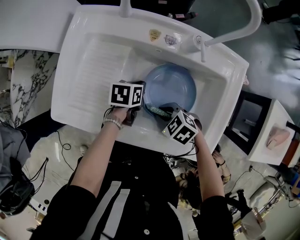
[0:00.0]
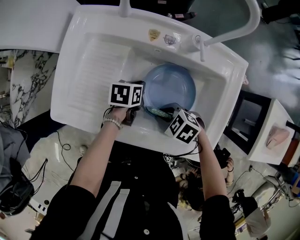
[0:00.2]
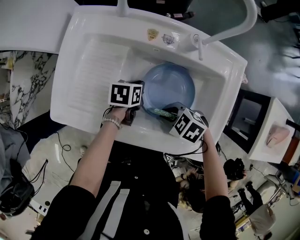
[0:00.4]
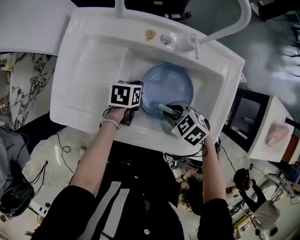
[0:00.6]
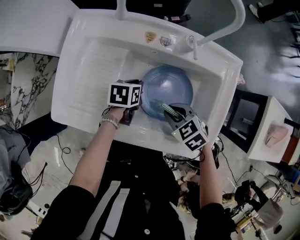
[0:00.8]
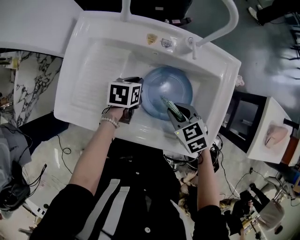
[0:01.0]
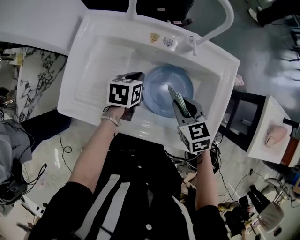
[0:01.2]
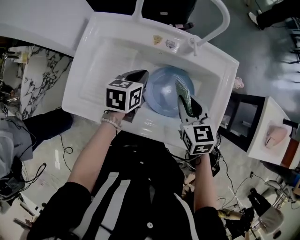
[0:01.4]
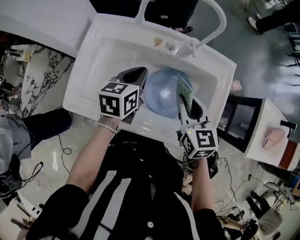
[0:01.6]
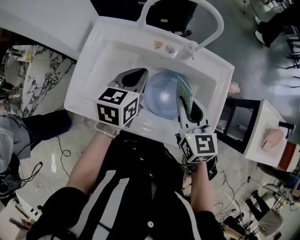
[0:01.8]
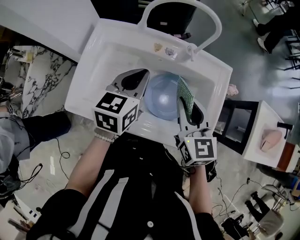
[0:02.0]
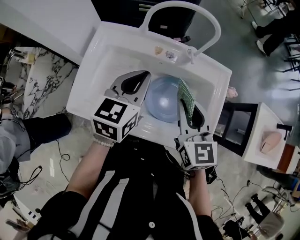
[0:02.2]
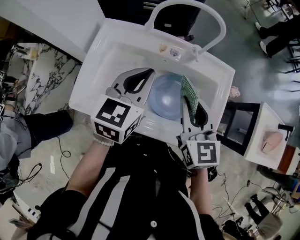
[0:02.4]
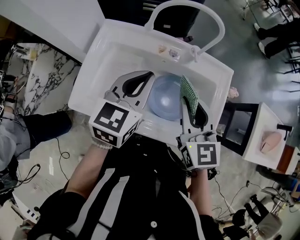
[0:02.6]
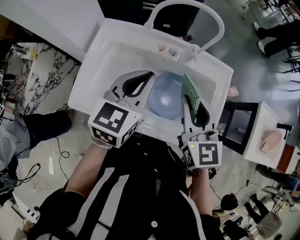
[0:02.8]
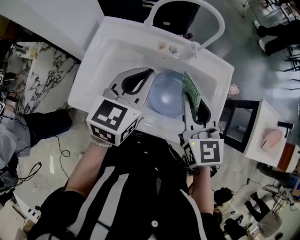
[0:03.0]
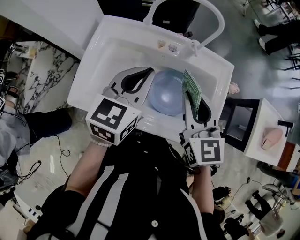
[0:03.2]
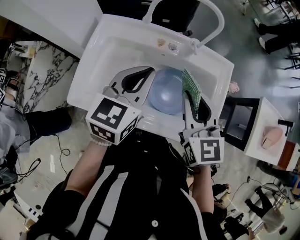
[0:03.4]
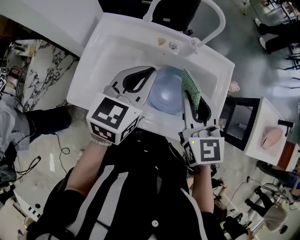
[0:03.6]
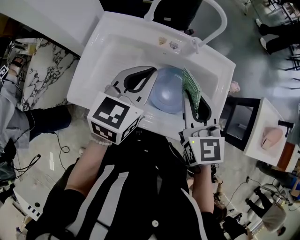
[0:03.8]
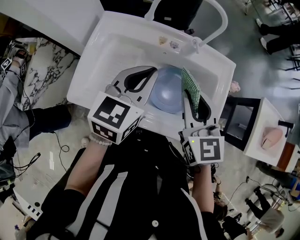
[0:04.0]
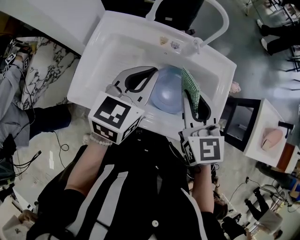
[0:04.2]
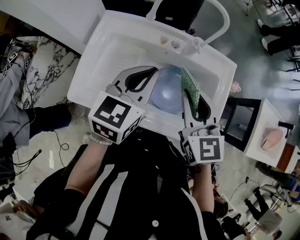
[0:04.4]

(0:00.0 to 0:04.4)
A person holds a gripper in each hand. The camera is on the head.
0:00.0 - 0:01.4: The two grippers go some 15 cm upward. The right gripper rotates some 50 degrees; the left gripper swivels some 20 degrees.
0:01.4 - 0:03.0: The two grippers go approximately 15 cm upward. The left gripper swivels approximately 30 degrees, while the right gripper swivels about 20 degrees.
0:03.0 - 0:04.4: The grippers stay close to where they were, moving slightly.

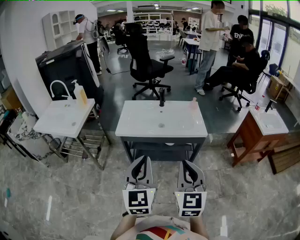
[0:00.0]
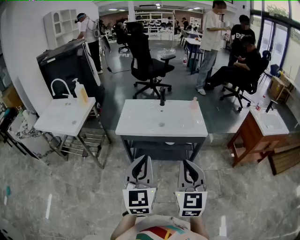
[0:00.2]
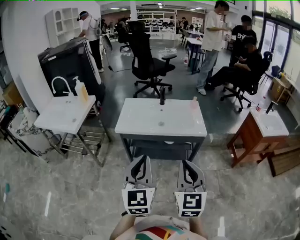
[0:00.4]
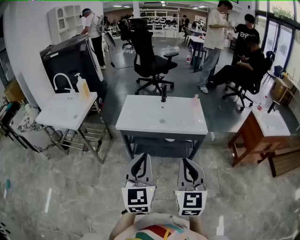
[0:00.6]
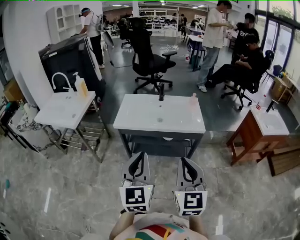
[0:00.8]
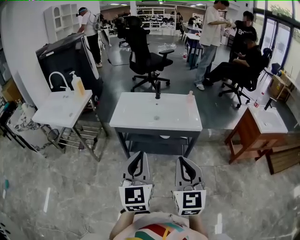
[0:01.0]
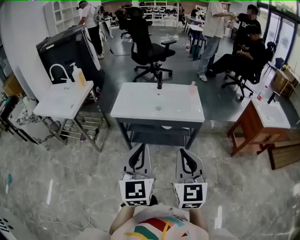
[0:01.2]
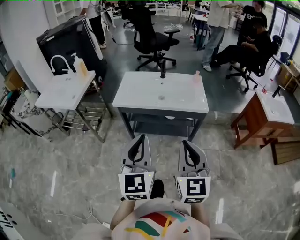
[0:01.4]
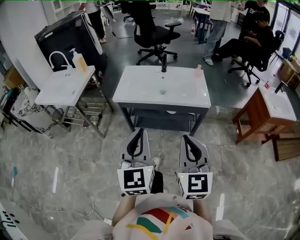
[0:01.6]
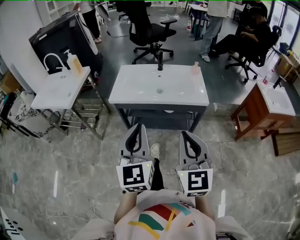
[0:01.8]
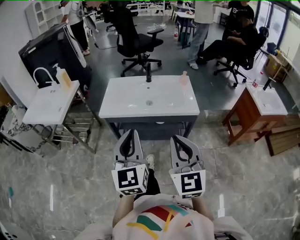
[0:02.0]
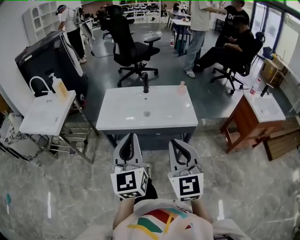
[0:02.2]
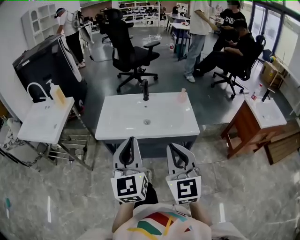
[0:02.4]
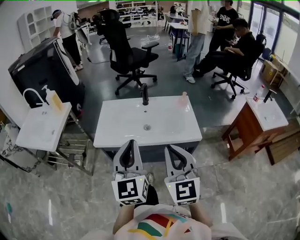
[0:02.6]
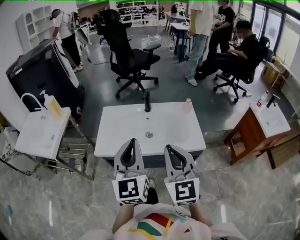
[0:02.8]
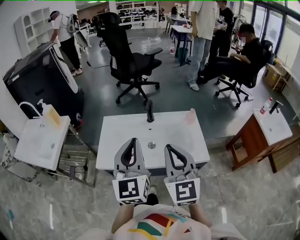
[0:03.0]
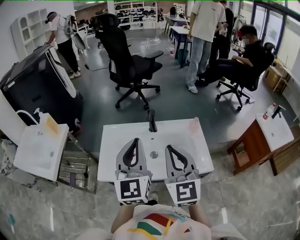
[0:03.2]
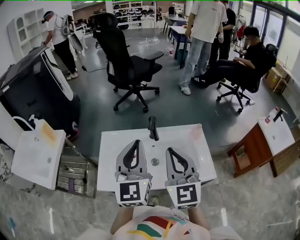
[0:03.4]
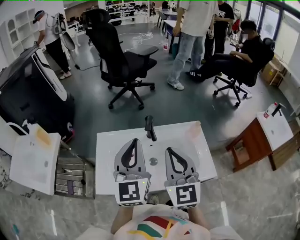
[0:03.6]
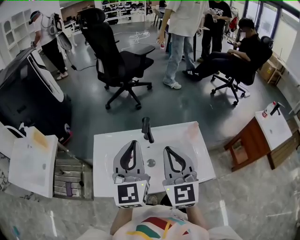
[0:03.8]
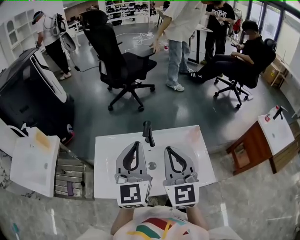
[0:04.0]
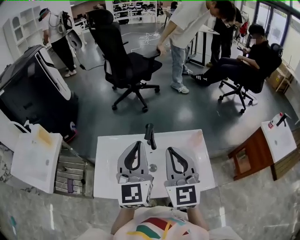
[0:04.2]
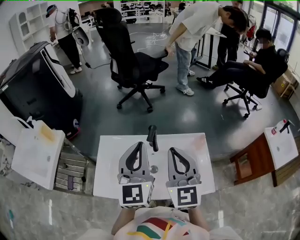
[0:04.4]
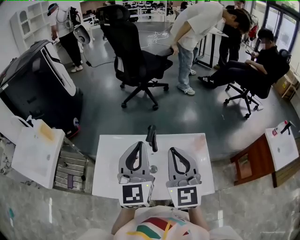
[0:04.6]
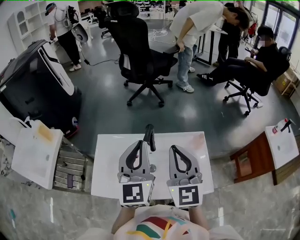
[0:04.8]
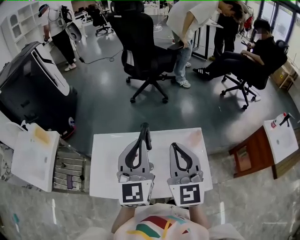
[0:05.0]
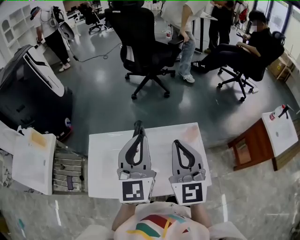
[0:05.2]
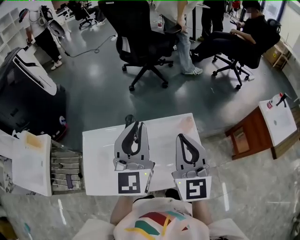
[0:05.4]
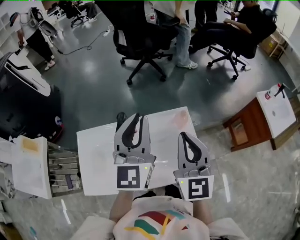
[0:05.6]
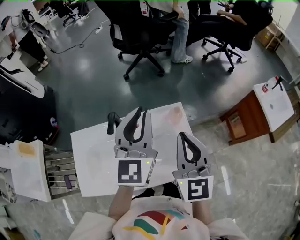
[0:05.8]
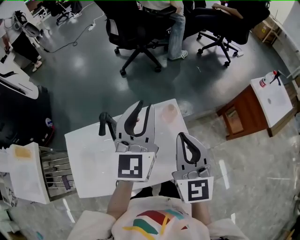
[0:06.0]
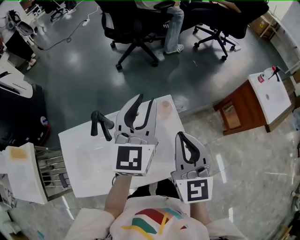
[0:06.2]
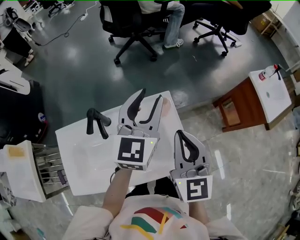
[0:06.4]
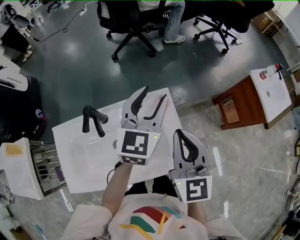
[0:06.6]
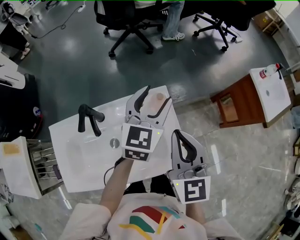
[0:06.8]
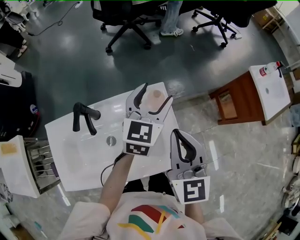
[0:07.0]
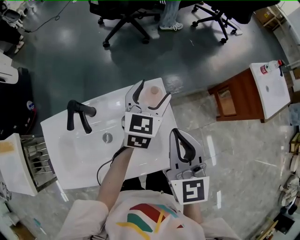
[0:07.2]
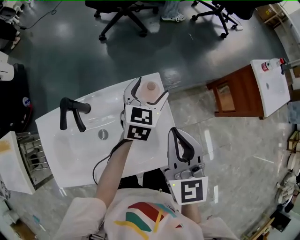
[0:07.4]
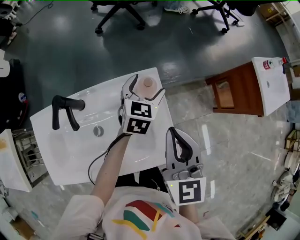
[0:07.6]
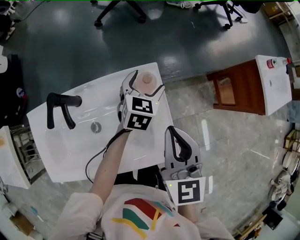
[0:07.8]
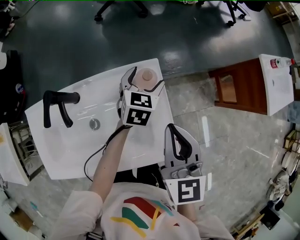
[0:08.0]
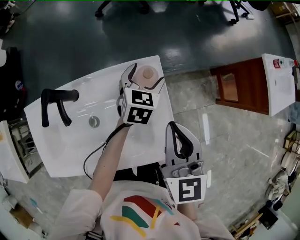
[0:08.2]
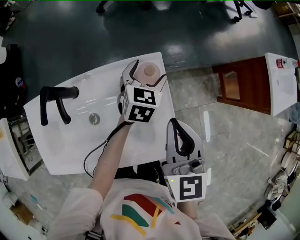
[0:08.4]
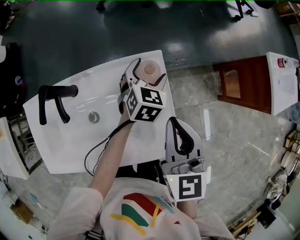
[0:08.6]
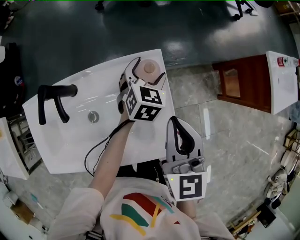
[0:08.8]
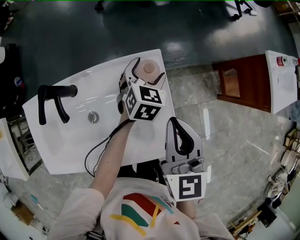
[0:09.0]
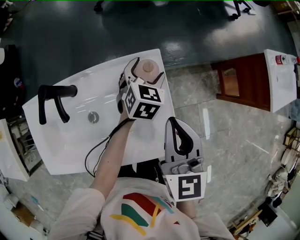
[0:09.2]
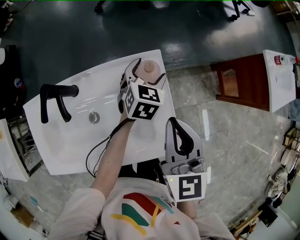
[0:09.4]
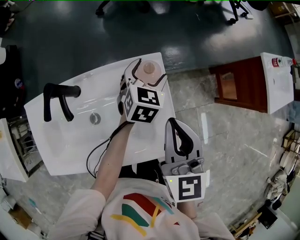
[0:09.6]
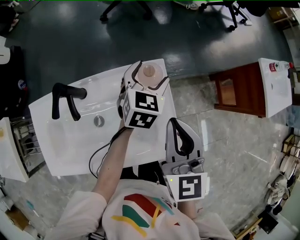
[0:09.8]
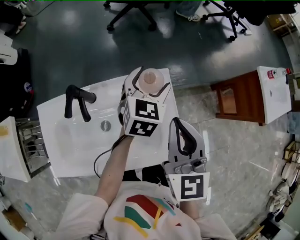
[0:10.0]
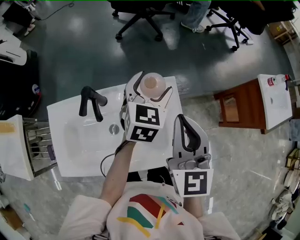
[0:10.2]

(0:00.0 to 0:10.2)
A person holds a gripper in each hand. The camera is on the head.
0:00.0 - 0:01.4: The left gripper changes place by some 5 cm.
0:01.4 - 0:03.0: The grippers both shift forward by roughly 35 cm.
0:03.0 - 0:04.4: Both grippers travel together forward, about 20 cm.
0:04.4 - 0:05.8: The left gripper is displaced to the right and forward by about 20 cm; the right gripper is displaced to the right by about 15 cm.
0:05.8 - 0:07.2: The left gripper heads downward, to the right and forward, covering some 25 cm, turns by roughly 30 degrees, and opens its fingers; the right gripper goes some 10 cm downward and to the right.
0:07.2 - 0:08.8: The right gripper is displaced downward by roughly 10 cm. The left gripper goes roughly 15 cm downward, and turns by approximately 20 degrees.
0:08.8 - 0:10.2: The right gripper goes approximately 10 cm upward and to the left. Meanwhile the left gripper shifts approximately 20 cm upward.

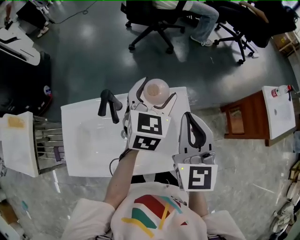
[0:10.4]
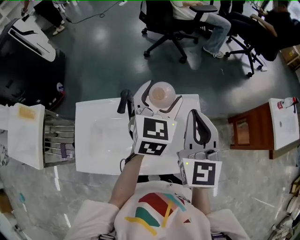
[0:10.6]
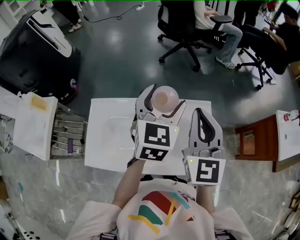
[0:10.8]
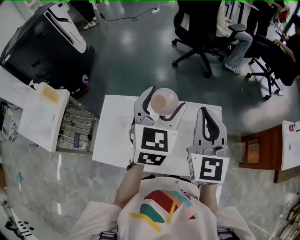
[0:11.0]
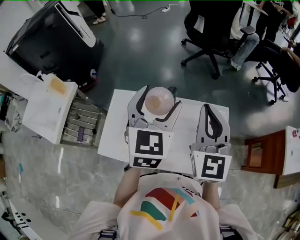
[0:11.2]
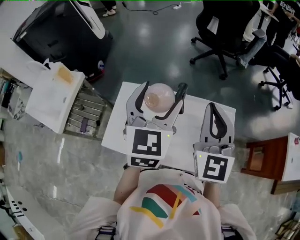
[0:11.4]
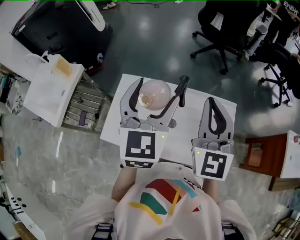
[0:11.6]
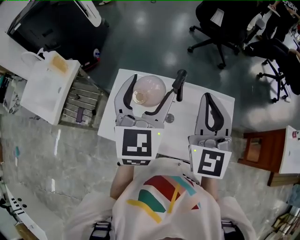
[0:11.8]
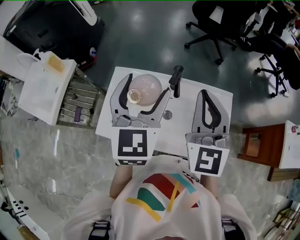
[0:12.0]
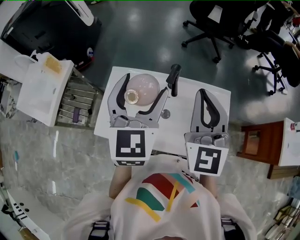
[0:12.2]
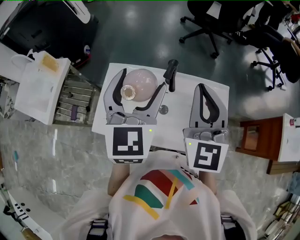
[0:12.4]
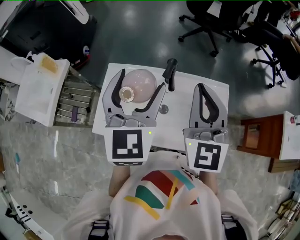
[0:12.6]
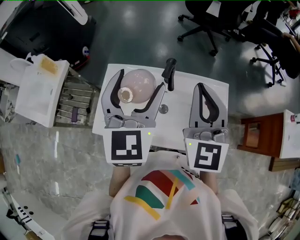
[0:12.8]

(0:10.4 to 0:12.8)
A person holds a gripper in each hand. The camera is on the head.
0:10.4 - 0:11.6: The left gripper travels to the left, backward and upward by some 30 cm, and turns by roughly 30 degrees. The right gripper goes about 20 cm to the left and upward, and swivels some 20 degrees.
0:11.6 - 0:12.8: There are only small adjustments of the grippers.

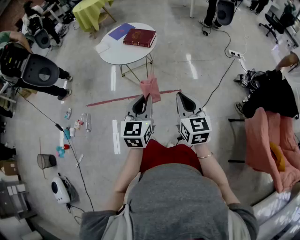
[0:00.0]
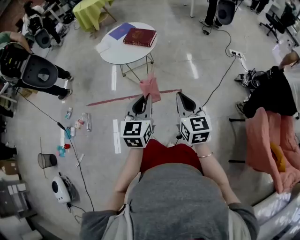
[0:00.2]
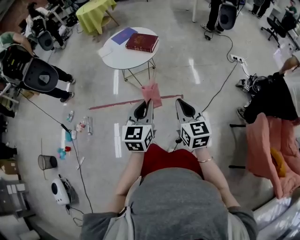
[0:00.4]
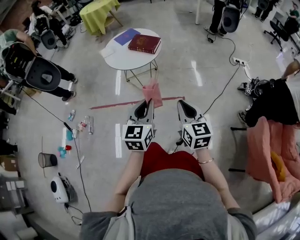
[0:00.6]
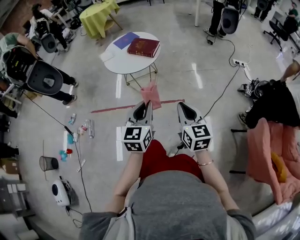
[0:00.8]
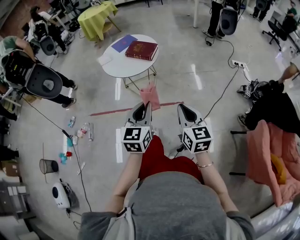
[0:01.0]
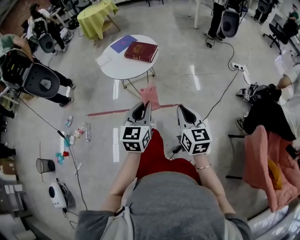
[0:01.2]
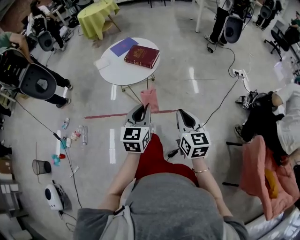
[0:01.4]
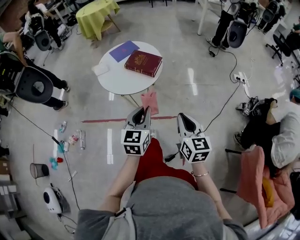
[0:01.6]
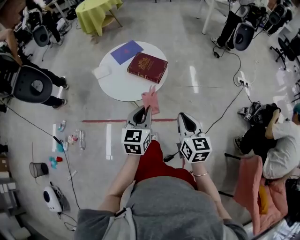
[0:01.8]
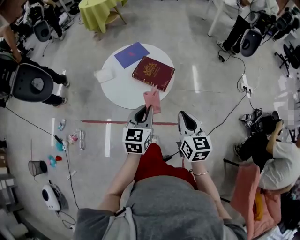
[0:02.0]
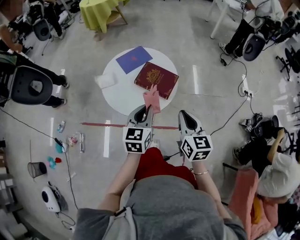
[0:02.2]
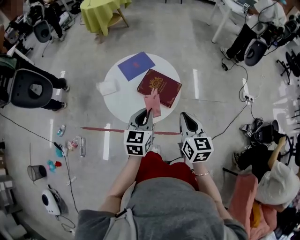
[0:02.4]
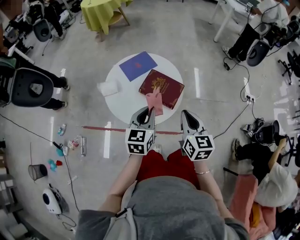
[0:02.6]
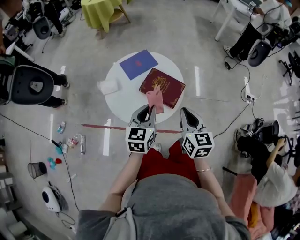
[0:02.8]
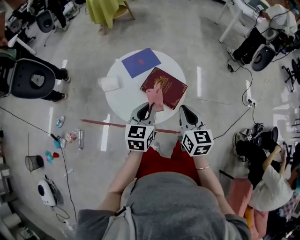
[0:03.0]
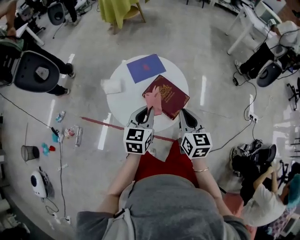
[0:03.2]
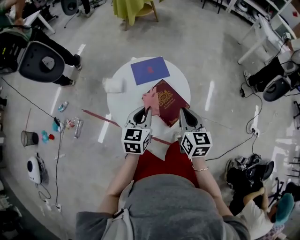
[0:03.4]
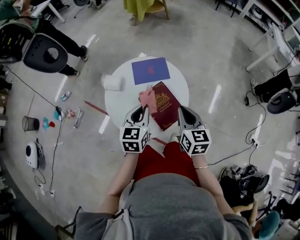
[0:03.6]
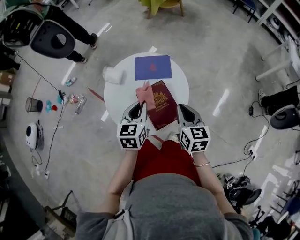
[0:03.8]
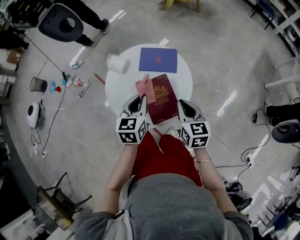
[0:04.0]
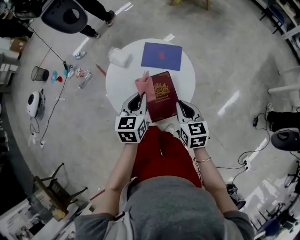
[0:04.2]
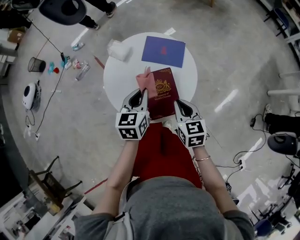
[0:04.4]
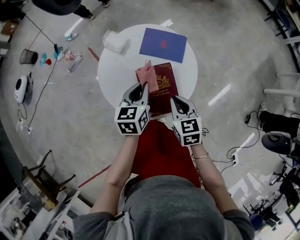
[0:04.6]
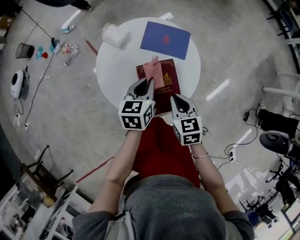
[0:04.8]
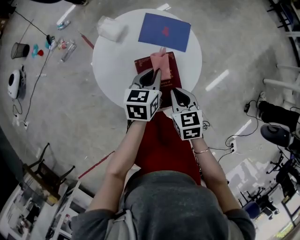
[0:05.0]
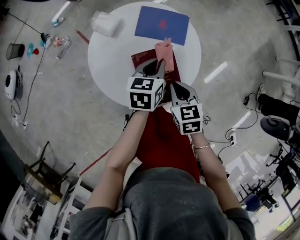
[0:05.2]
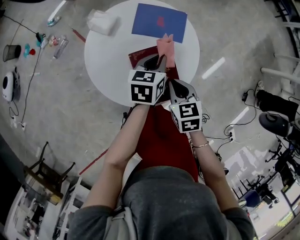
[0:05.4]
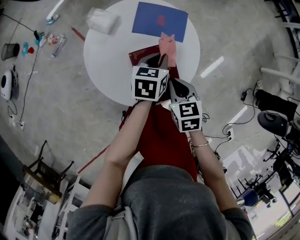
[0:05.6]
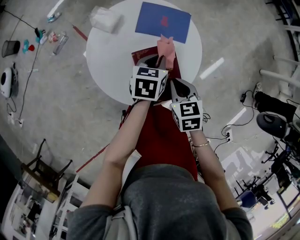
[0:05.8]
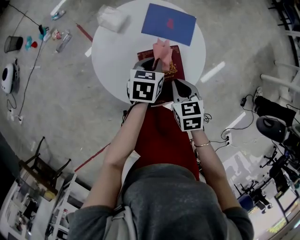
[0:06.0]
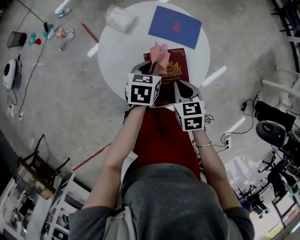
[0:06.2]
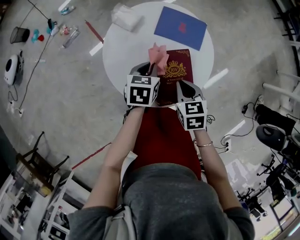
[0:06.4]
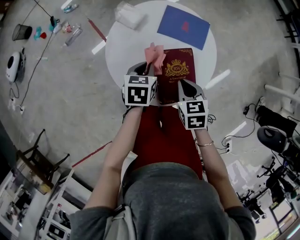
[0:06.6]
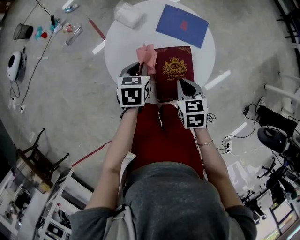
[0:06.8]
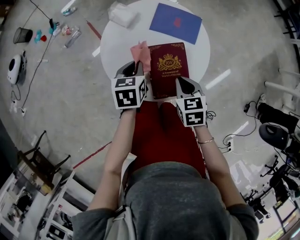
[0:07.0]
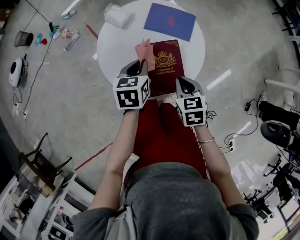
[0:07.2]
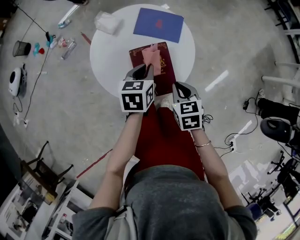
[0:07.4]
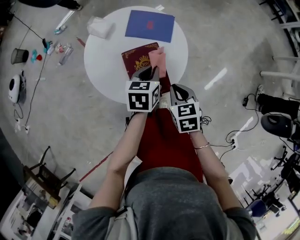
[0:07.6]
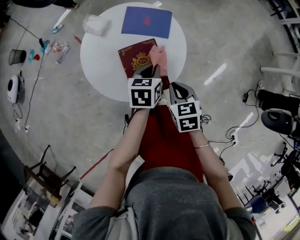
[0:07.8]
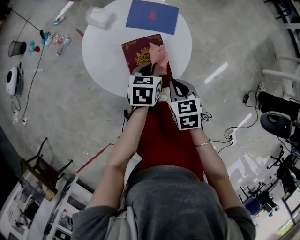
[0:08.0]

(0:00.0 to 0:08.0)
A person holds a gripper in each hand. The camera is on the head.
0:00.0 - 0:01.6: Both grippers move forward, approximately 20 cm.
0:01.6 - 0:03.2: Both grippers move forward, approximately 35 cm.
0:03.2 - 0:04.8: The right gripper is displaced downward by approximately 10 cm, and rotates roughly 50 degrees. Meanwhile the left gripper moves some 15 cm, and rotates about 40 degrees.
0:04.8 - 0:06.4: The left gripper moves downward, roughly 5 cm.
0:06.4 - 0:08.0: The left gripper heads to the right, covering roughly 10 cm, while the right gripper is displaced to the right and backward by approximately 10 cm.
